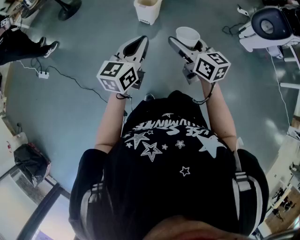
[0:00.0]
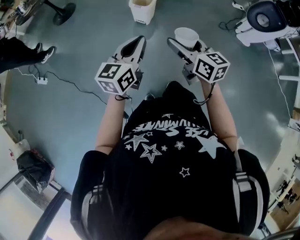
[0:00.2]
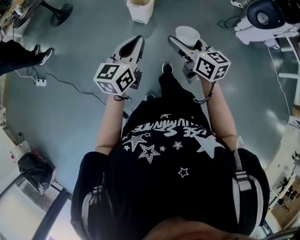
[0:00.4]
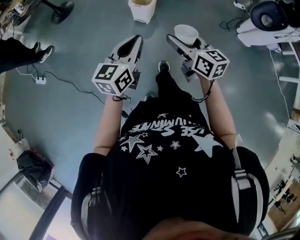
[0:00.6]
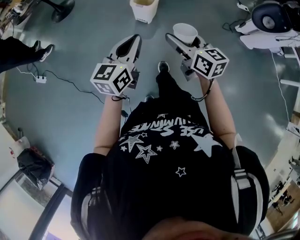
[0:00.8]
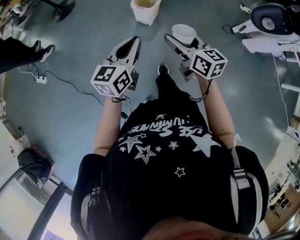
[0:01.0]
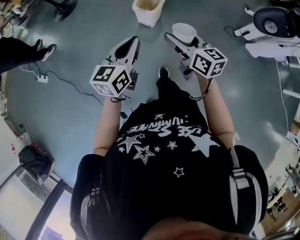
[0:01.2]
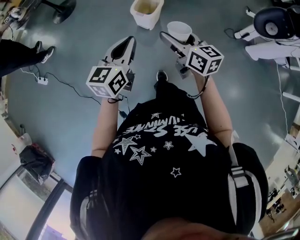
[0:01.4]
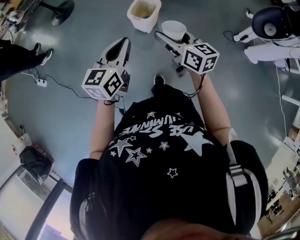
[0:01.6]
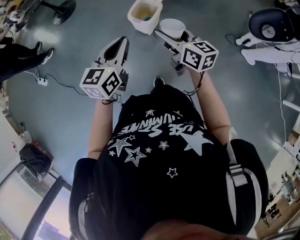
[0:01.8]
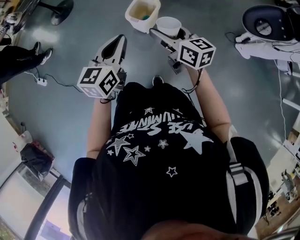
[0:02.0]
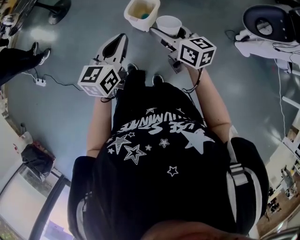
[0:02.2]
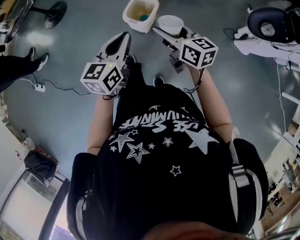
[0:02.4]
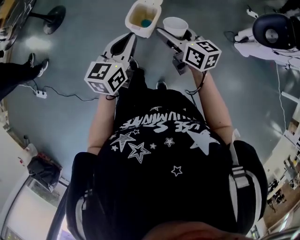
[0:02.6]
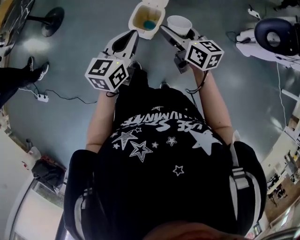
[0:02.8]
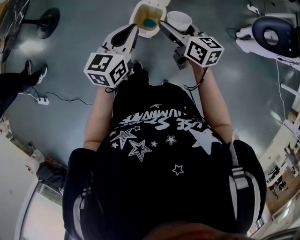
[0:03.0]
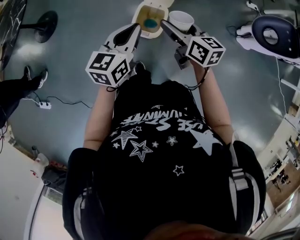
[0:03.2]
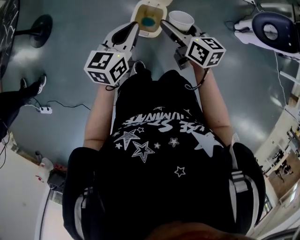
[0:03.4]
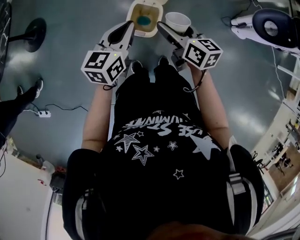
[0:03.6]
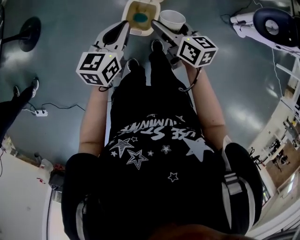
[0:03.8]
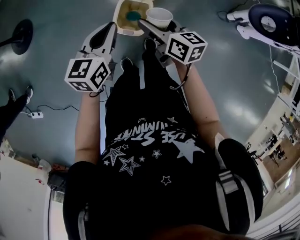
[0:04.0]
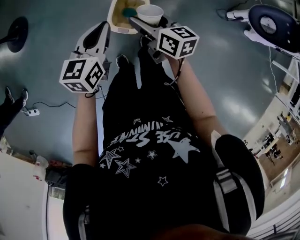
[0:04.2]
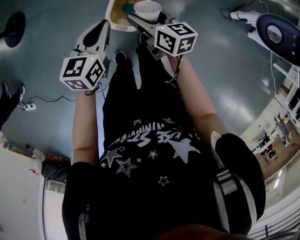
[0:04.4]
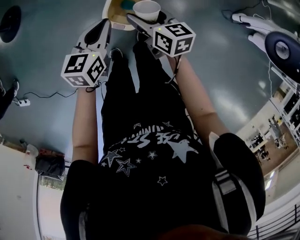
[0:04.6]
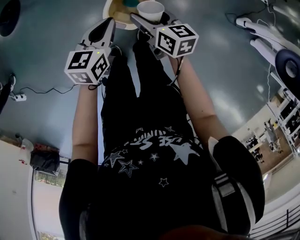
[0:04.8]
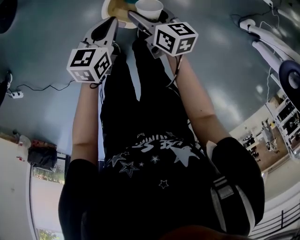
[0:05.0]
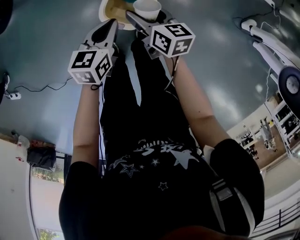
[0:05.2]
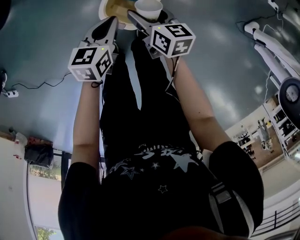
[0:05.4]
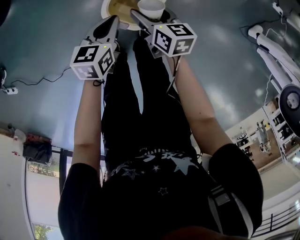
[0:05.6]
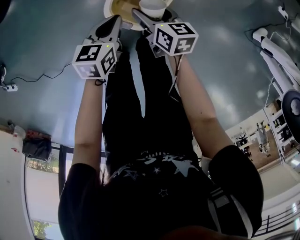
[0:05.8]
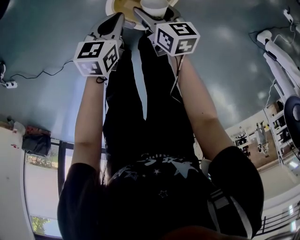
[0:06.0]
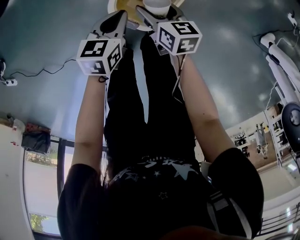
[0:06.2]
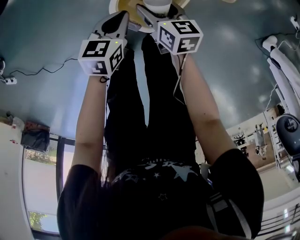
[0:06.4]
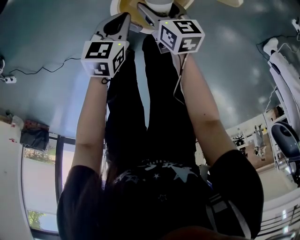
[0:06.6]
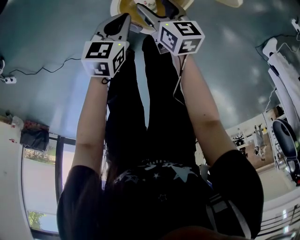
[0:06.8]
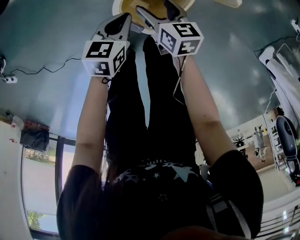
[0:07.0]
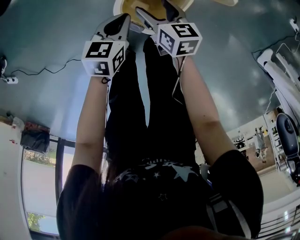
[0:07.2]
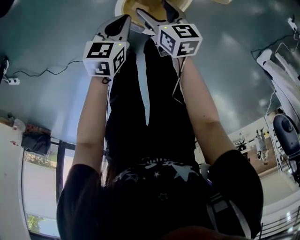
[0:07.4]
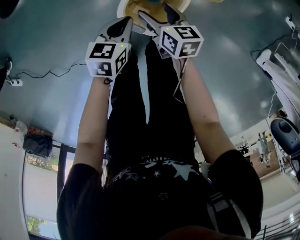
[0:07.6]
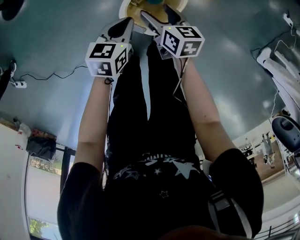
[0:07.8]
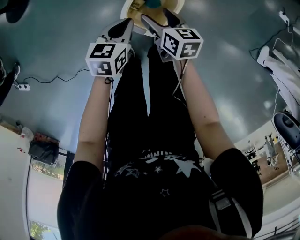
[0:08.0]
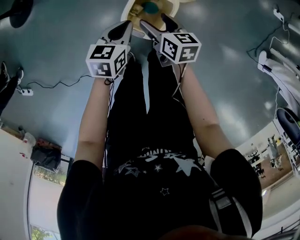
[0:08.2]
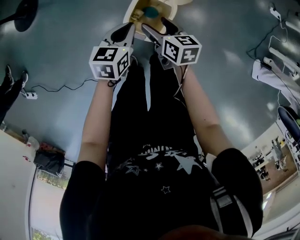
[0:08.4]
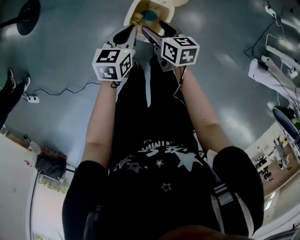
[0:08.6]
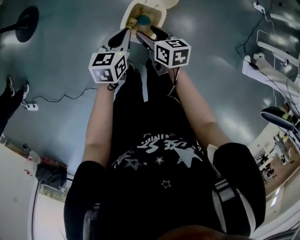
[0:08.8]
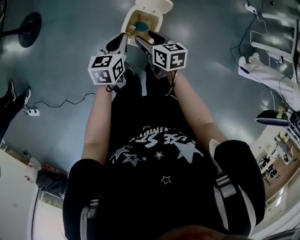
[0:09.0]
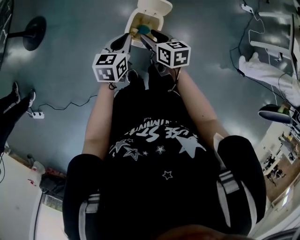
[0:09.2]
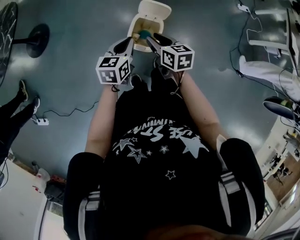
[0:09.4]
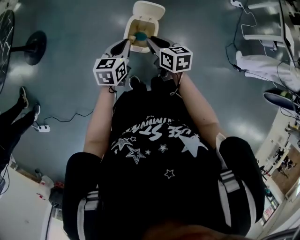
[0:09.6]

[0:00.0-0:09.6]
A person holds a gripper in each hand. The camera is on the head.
0:00.0 to 0:01.6: The two grippers go about 25 cm forward.
0:01.6 to 0:03.2: Both grippers travel together forward, roughly 30 cm.
0:03.2 to 0:04.8: Both grippers travel together downward and forward, about 25 cm. The left gripper swivels about 20 degrees.
0:04.8 to 0:06.4: Both grippers move downward, approximately 25 cm.
0:06.4 to 0:08.0: The two grippers go about 10 cm upward.
0:08.0 to 0:09.6: The left gripper goes approximately 20 cm upward. The right gripper moves upward and backward, some 25 cm, and closes up.

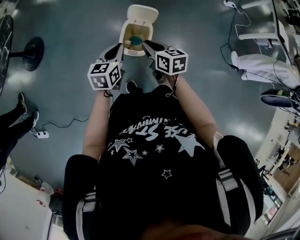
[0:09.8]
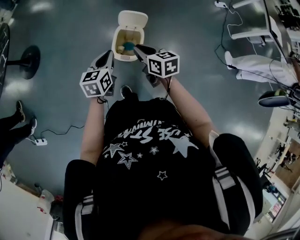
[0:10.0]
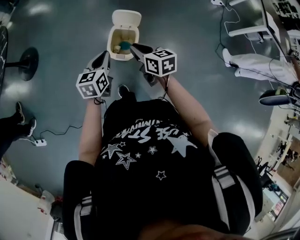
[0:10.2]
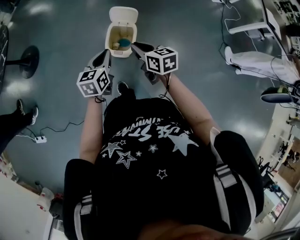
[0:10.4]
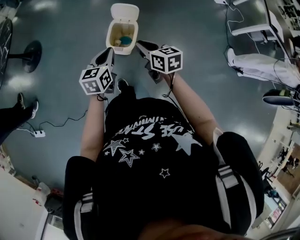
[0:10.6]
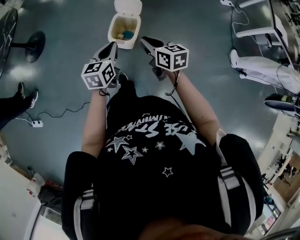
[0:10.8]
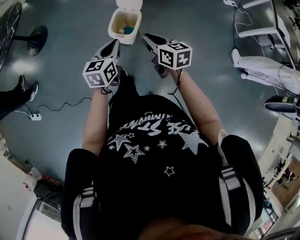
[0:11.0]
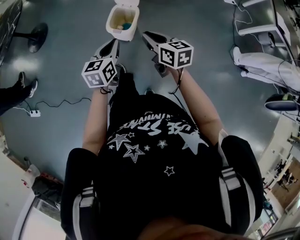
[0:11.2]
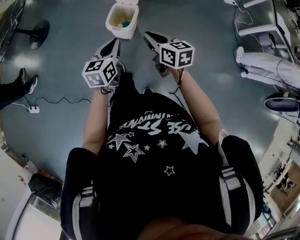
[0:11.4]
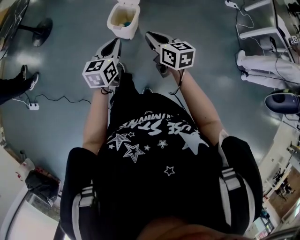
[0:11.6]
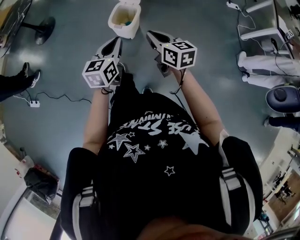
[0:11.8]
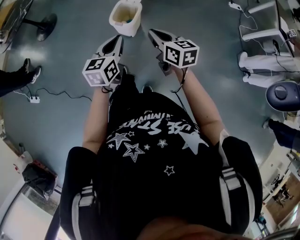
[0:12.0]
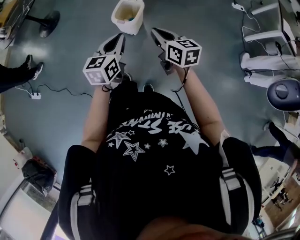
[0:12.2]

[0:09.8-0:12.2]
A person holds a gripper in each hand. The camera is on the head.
0:09.8 to 0:11.0: Both grippers move backward and to the right, about 20 cm.
0:11.0 to 0:12.2: The right gripper shifts some 15 cm backward and to the right, while the left gripper shifts approximately 15 cm backward.

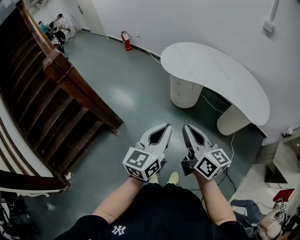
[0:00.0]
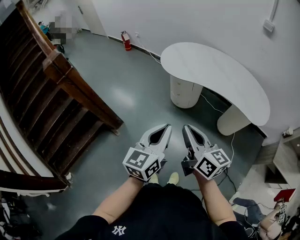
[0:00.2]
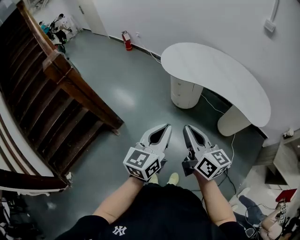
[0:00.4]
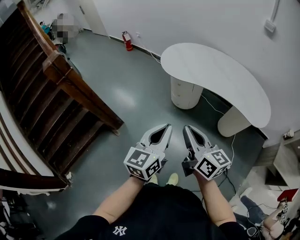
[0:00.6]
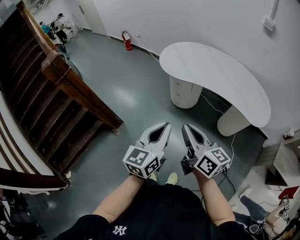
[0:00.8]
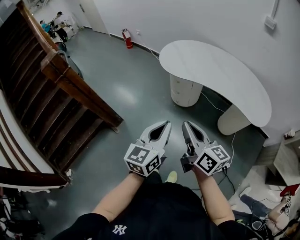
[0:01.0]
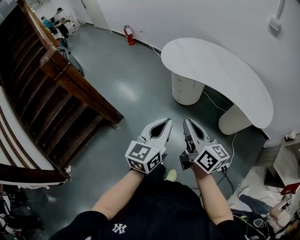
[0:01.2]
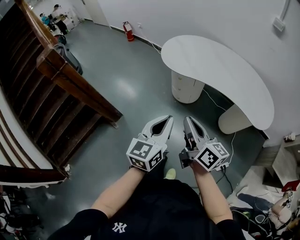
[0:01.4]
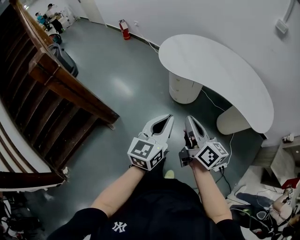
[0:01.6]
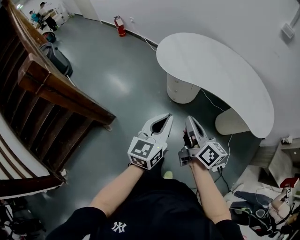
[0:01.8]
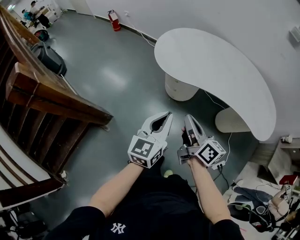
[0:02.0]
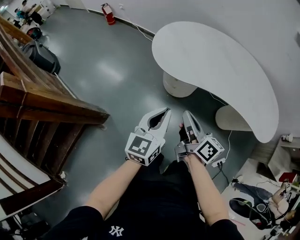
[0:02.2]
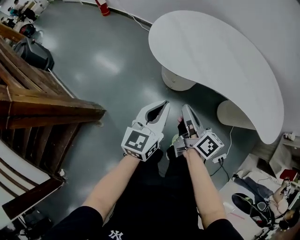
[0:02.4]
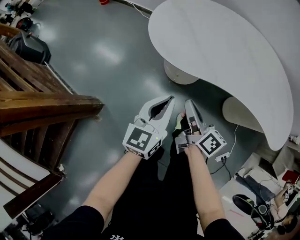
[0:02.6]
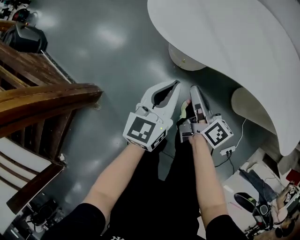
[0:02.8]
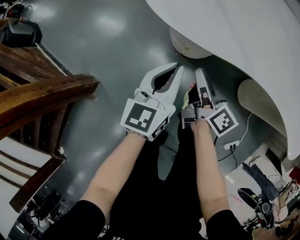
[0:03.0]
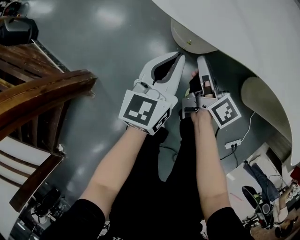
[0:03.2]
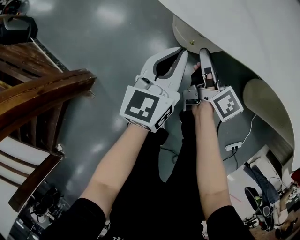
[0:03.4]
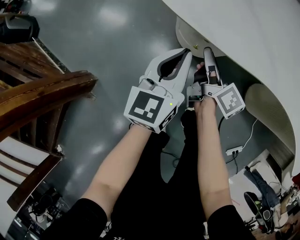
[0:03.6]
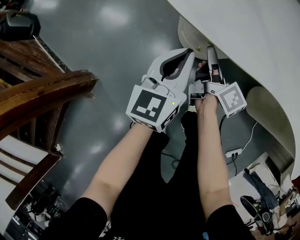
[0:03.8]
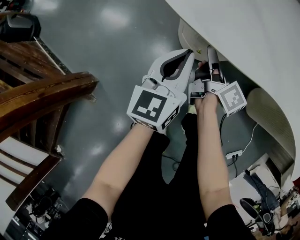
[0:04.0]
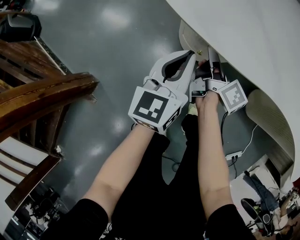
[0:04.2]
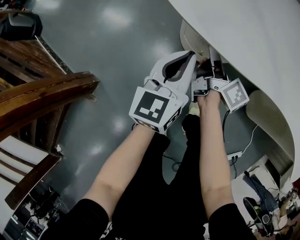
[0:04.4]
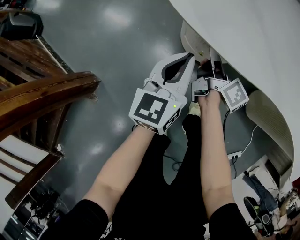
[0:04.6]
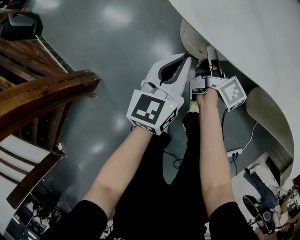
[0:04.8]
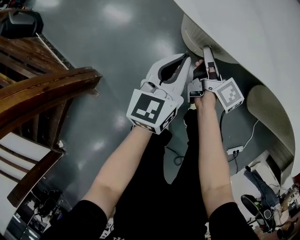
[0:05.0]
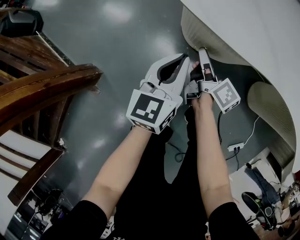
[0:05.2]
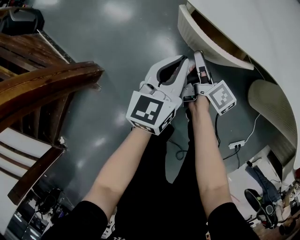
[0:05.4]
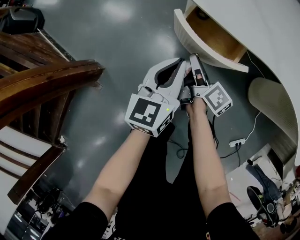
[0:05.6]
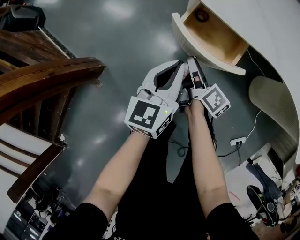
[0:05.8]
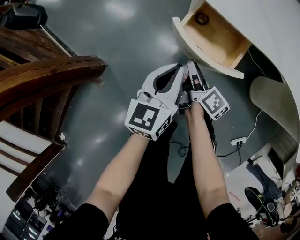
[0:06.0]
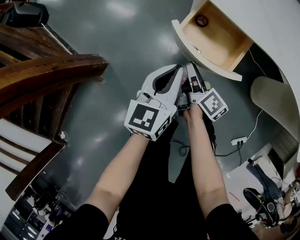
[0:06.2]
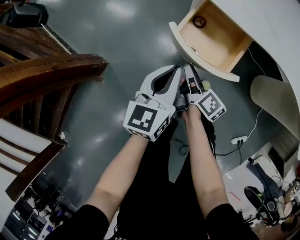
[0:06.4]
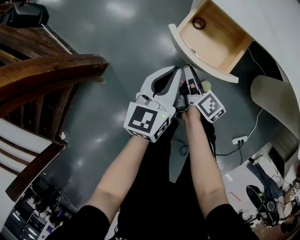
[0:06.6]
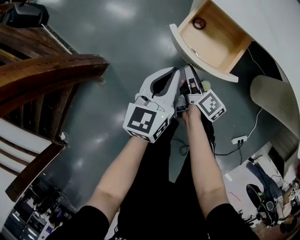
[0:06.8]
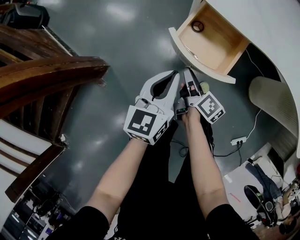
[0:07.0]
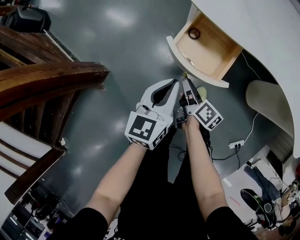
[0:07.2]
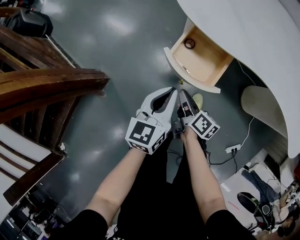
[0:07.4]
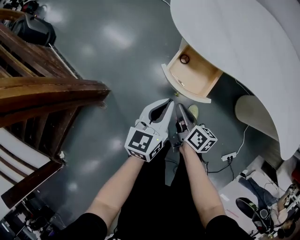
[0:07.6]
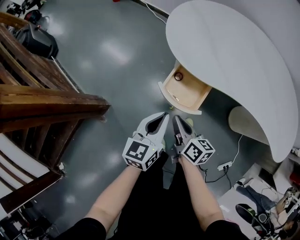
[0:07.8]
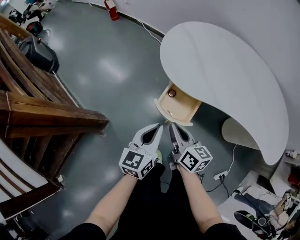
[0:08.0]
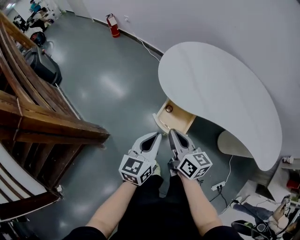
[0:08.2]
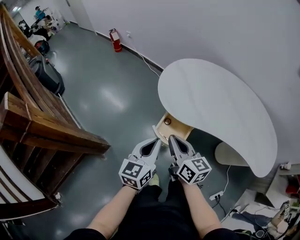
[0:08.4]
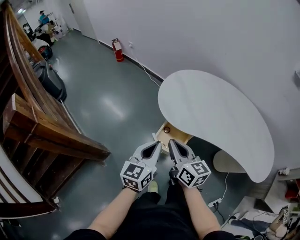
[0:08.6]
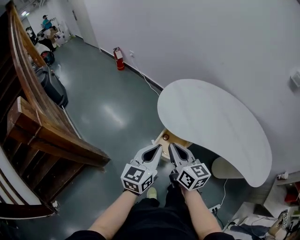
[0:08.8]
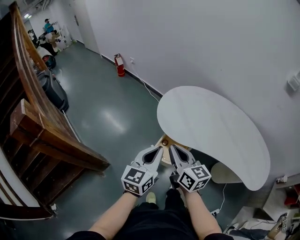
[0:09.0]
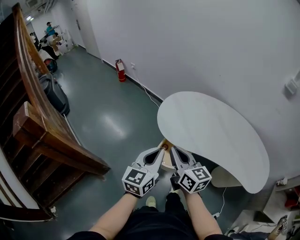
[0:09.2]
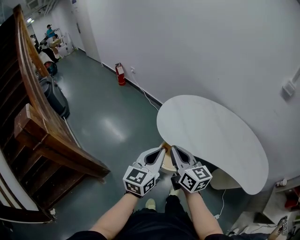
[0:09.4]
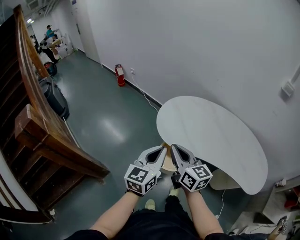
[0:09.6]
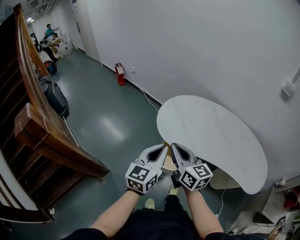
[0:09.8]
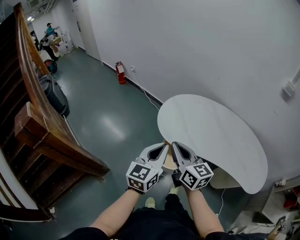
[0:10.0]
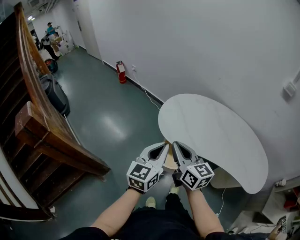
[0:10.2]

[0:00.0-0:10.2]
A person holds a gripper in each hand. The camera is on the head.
0:00.0 to 0:01.4: Both grippers travel together forward and to the right, approximately 20 cm.
0:01.4 to 0:03.0: The left gripper is displaced downward, forward and to the left by roughly 50 cm, while the right gripper heads downward and forward, covering some 50 cm, and turns by about 20 degrees.
0:03.0 to 0:04.4: The right gripper shifts approximately 15 cm downward and forward; the left gripper travels downward and forward by roughly 10 cm.
0:04.4 to 0:05.8: Both grippers travel together backward, roughly 15 cm.
0:05.8 to 0:07.2: The right gripper shifts roughly 5 cm backward.
0:07.2 to 0:08.8: Both grippers move upward, about 40 cm. The right gripper twists some 40 degrees counterclockwise, seen from behind.
0:08.8 to 0:10.2: The grippers both shift upward by approximately 5 cm.

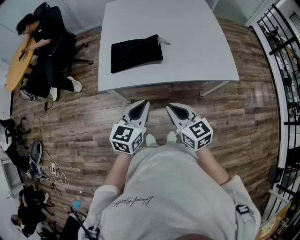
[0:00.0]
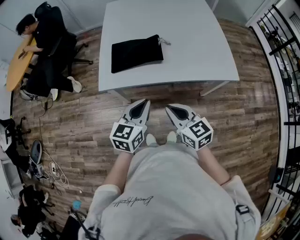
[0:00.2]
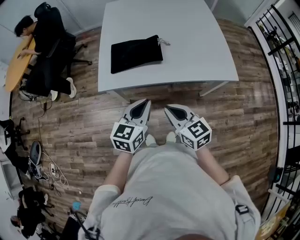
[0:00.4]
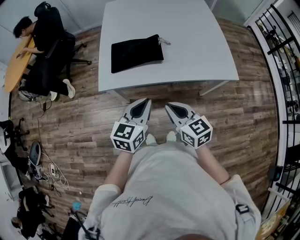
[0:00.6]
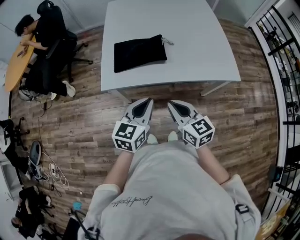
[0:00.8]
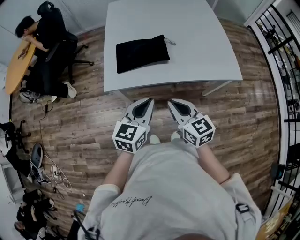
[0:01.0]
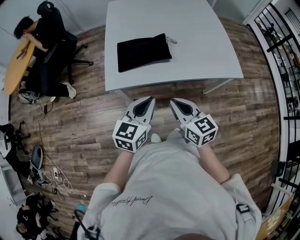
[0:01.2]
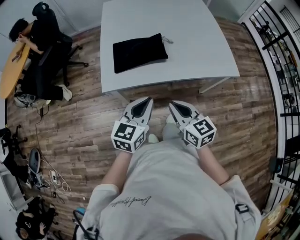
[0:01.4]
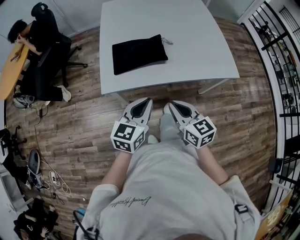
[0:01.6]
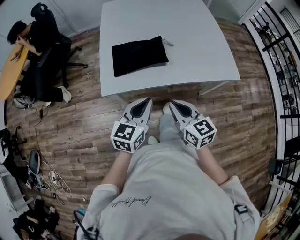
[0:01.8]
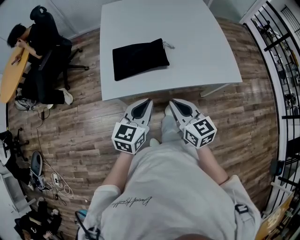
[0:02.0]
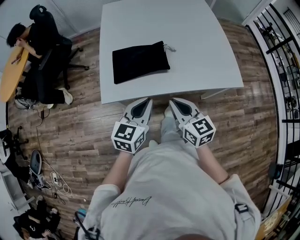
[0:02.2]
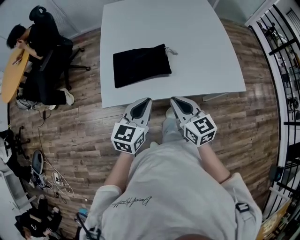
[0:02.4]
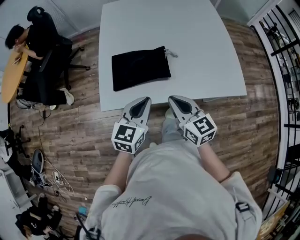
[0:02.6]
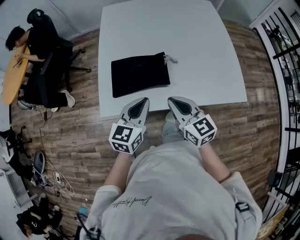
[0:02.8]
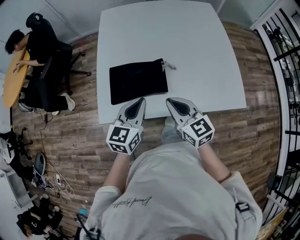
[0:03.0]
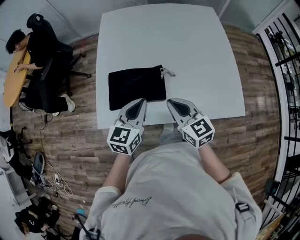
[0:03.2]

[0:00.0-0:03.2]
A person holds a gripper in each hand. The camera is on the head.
0:00.0 to 0:01.6: The grippers stay close to where they were, moving slightly.
0:01.6 to 0:03.2: Both grippers move forward, approximately 20 cm.
